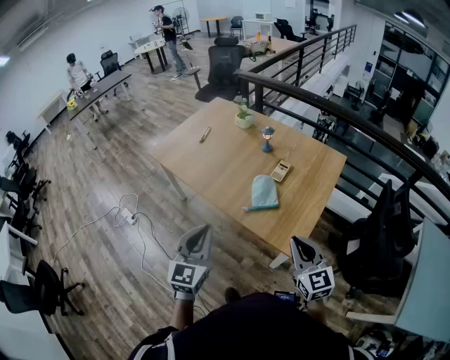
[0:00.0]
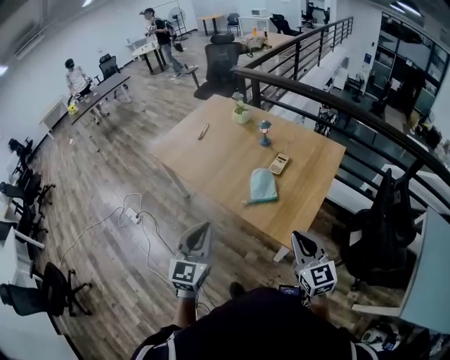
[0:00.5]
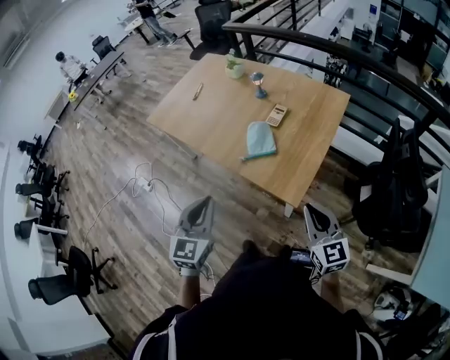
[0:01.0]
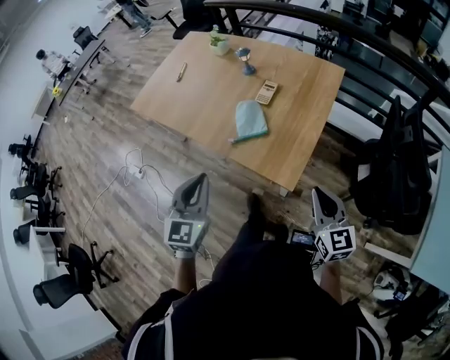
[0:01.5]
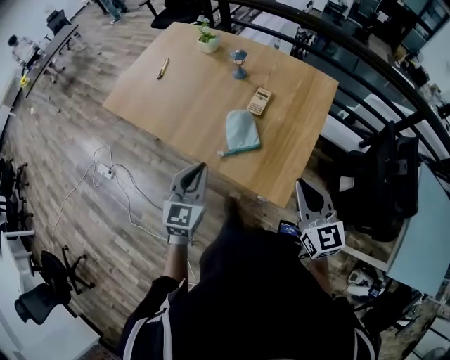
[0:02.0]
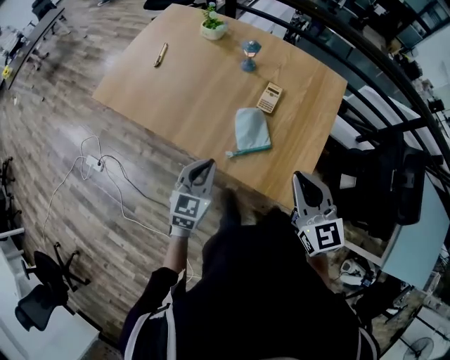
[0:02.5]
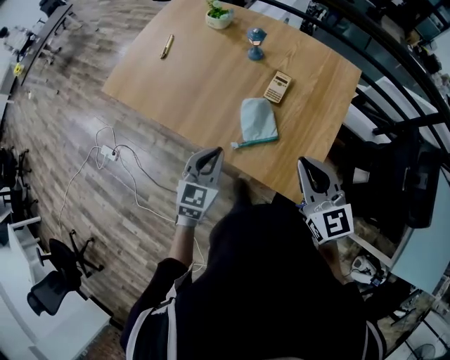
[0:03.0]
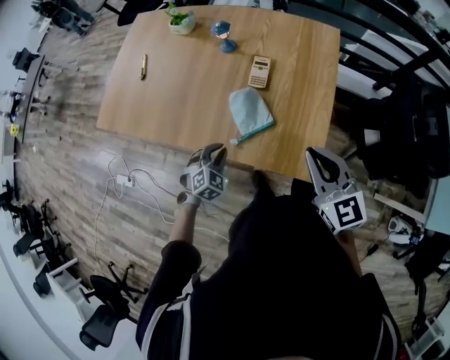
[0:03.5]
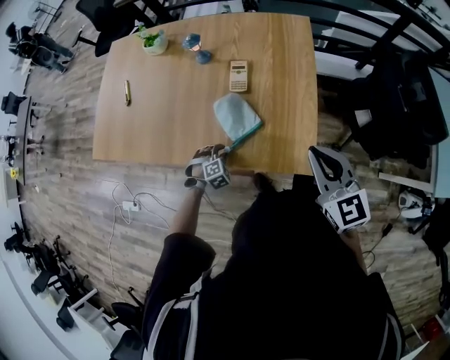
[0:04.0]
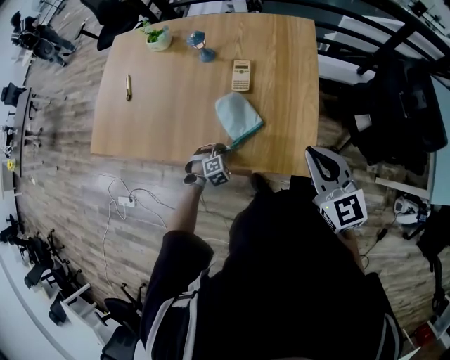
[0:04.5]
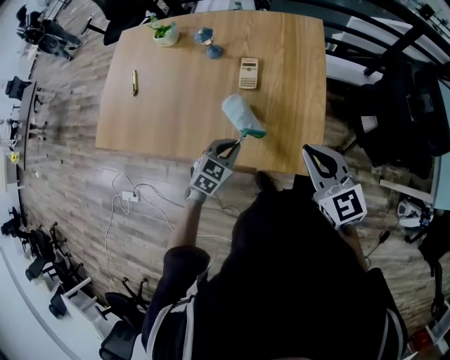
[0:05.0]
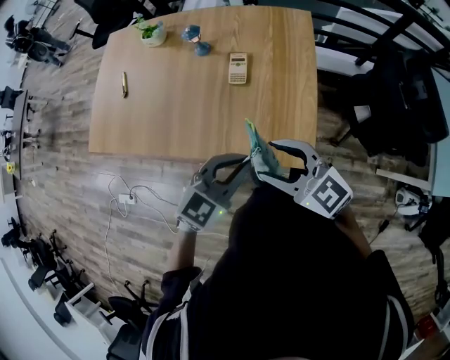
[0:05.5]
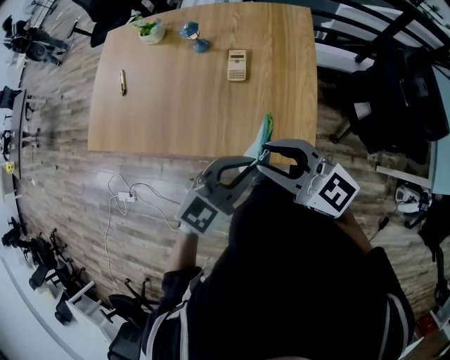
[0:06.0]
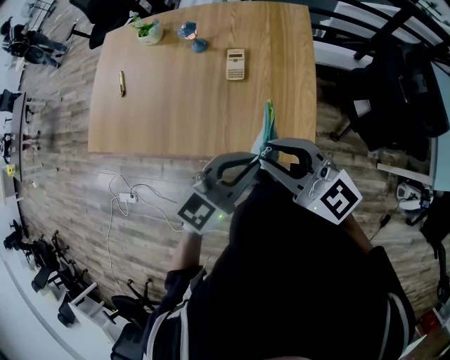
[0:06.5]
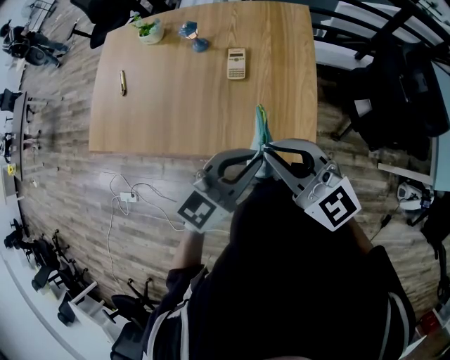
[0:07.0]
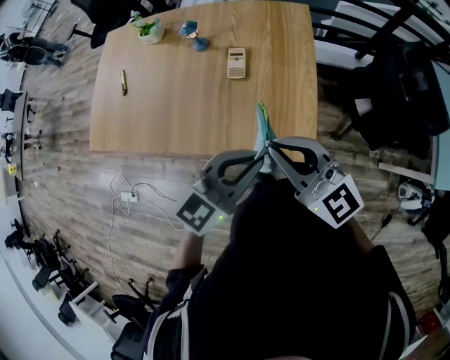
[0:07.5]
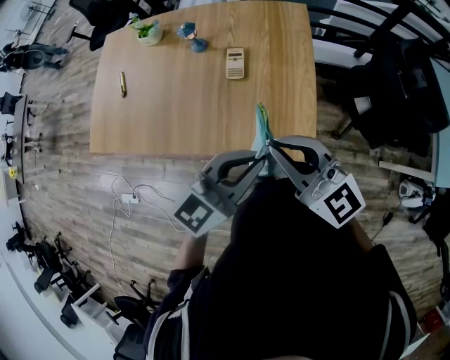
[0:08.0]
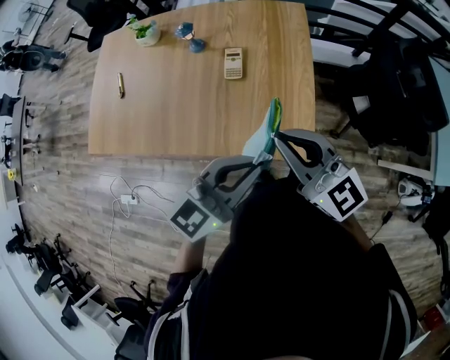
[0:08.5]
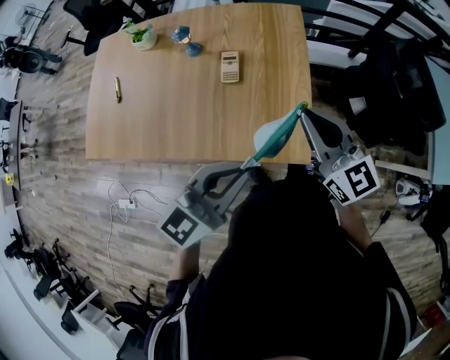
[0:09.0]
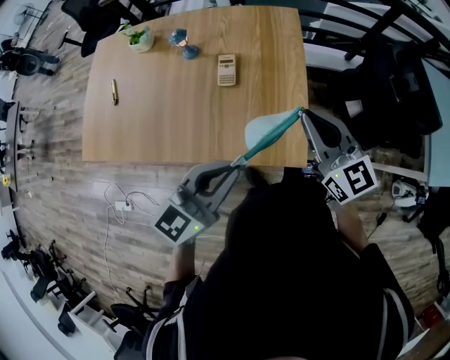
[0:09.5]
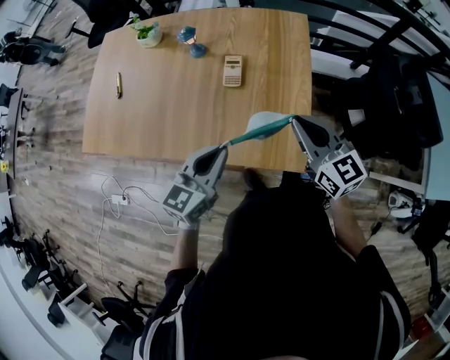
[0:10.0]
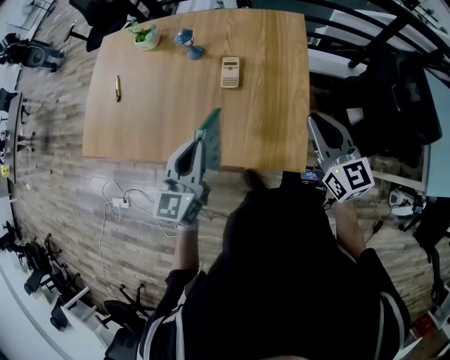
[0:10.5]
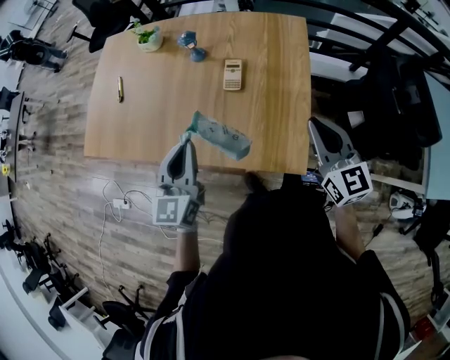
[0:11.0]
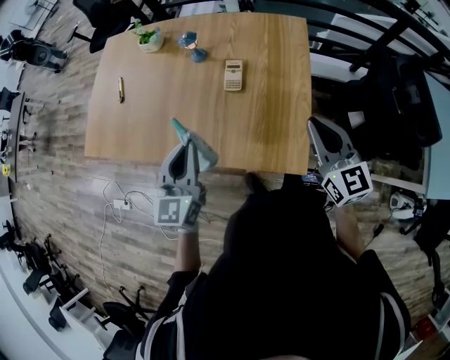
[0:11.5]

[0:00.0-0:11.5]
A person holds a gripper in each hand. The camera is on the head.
0:00.0 to 0:02.0: The left gripper shifts roughly 15 cm forward, downward and to the right; the right gripper heads forward and to the right, covering roughly 10 cm.
0:02.0 to 0:04.0: The left gripper moves downward, some 35 cm, and tilts its fingers some 50 degrees downward, while the right gripper reaches roughly 10 cm to the left, then returns.
0:04.0 to 0:06.0: The left gripper moves upward, approximately 35 cm, and tips its fingers upward by roughly 50 degrees. The right gripper travels to the left by some 10 cm, changes its angle by some 30 degrees, and opens its fingers.
0:06.0 to 0:07.5: The right gripper closes up.
0:07.5 to 0:09.5: The right gripper heads forward and to the right, covering roughly 15 cm, and changes its angle by roughly 20 degrees.
0:09.5 to 0:11.5: The left gripper shifts approximately 15 cm to the left and forward, and changes its angle by approximately 40 degrees.

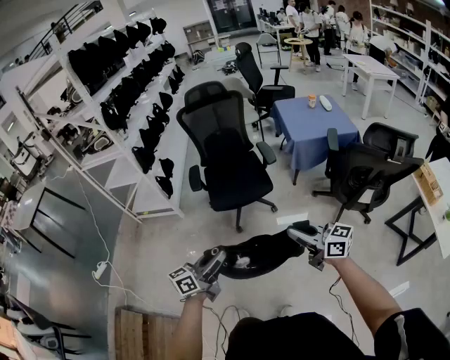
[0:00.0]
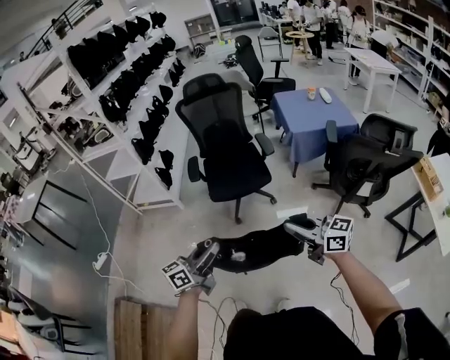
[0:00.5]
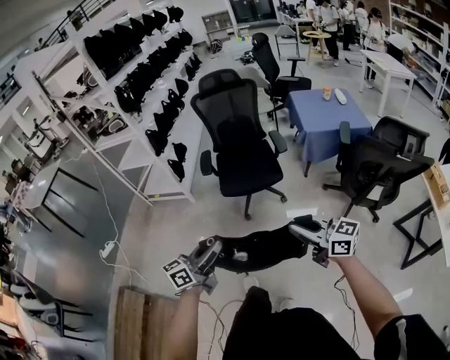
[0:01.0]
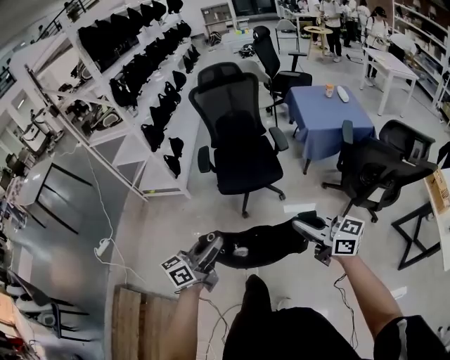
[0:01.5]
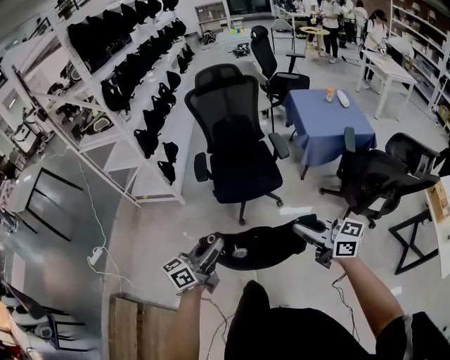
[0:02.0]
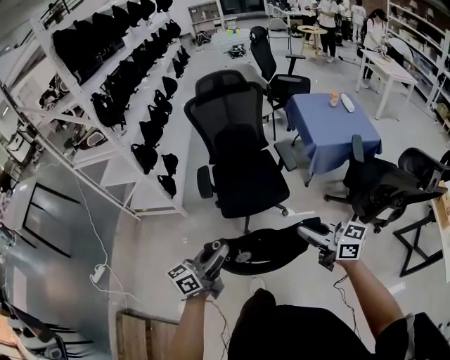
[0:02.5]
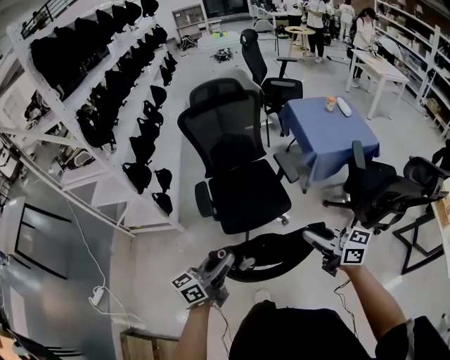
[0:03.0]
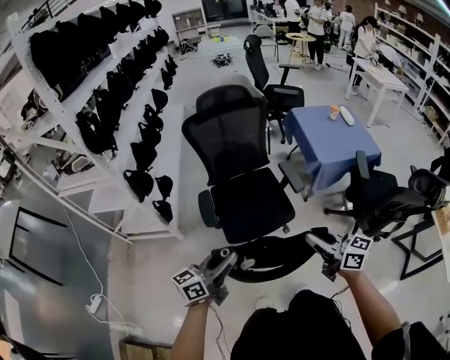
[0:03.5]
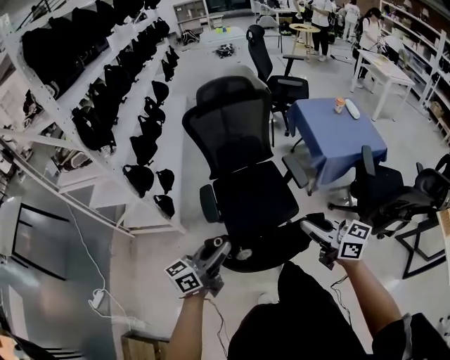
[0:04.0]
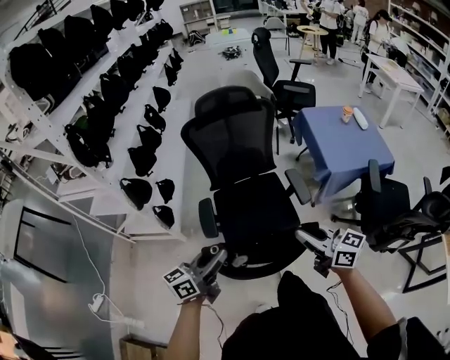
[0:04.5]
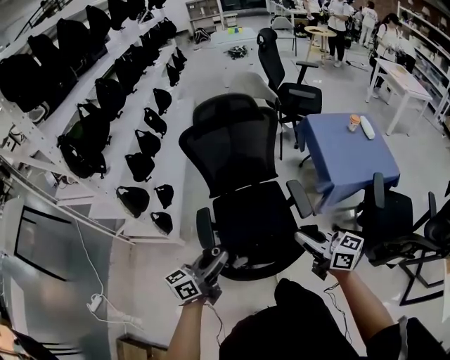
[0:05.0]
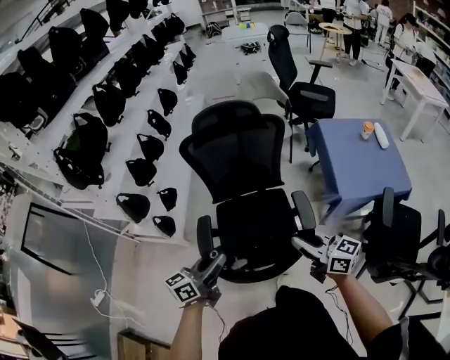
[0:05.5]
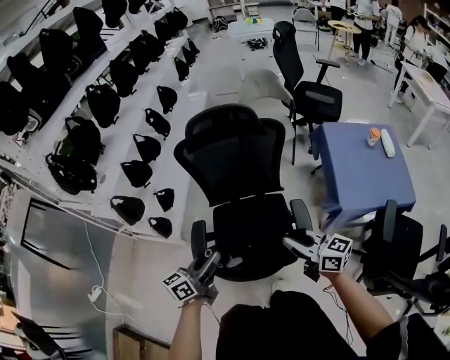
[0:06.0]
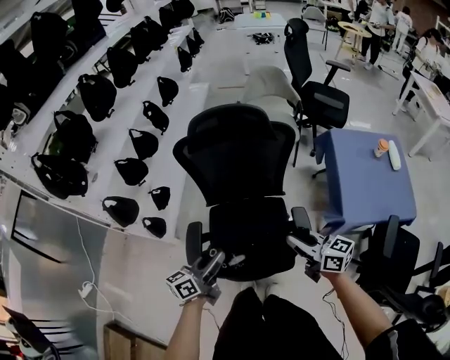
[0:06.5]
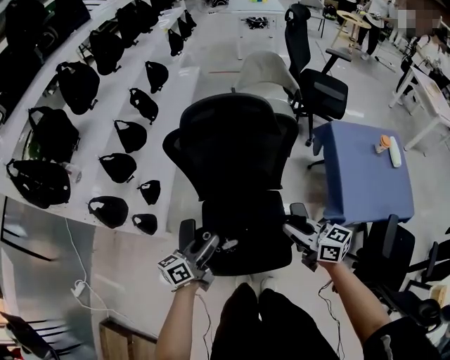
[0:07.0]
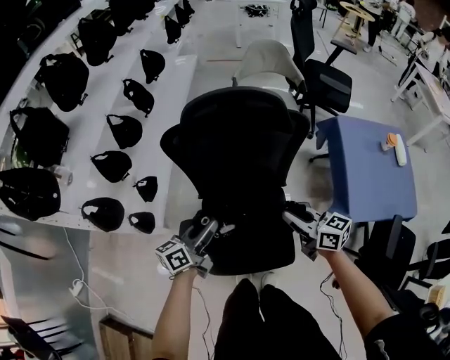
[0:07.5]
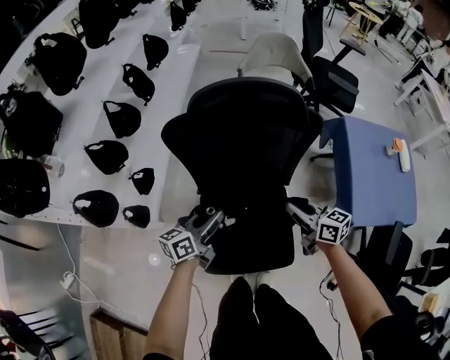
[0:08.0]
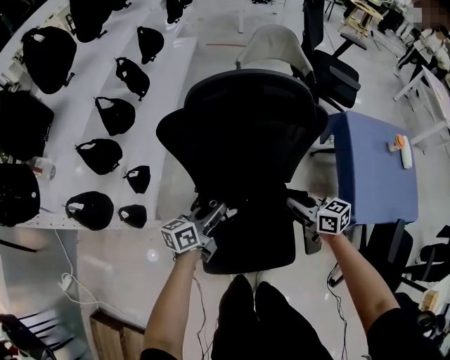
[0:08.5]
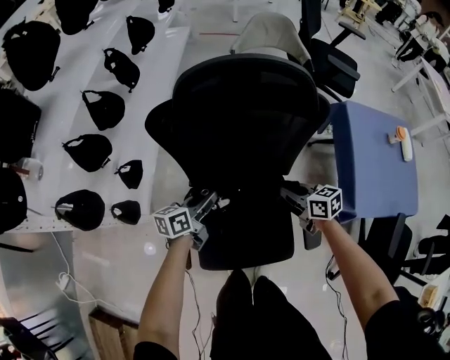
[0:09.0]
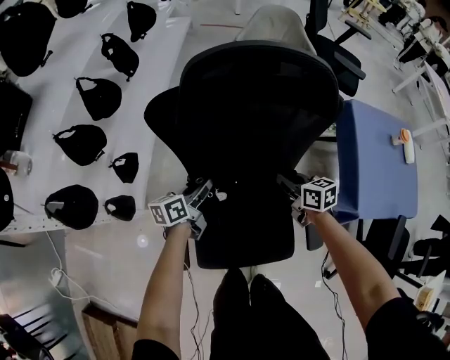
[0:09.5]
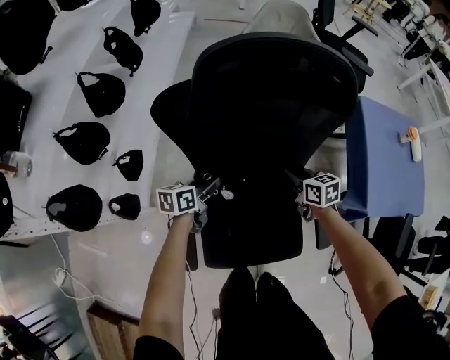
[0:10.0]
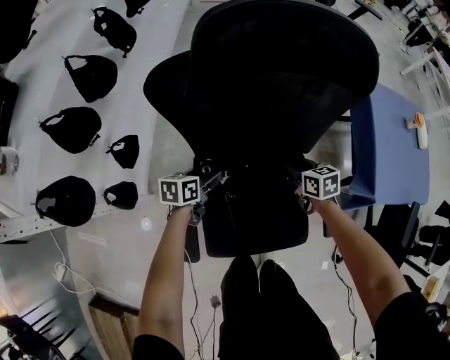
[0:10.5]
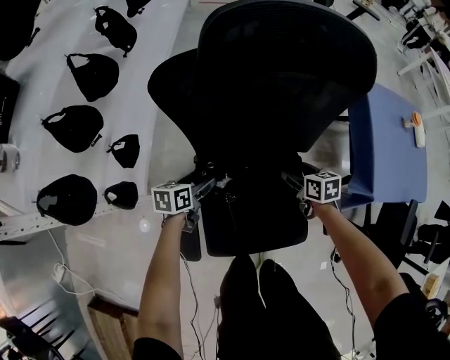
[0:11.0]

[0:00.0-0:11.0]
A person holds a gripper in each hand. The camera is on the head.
0:00.0 to 0:02.0: Both grippers move forward, roughly 10 cm.
0:02.0 to 0:03.5: The two grippers go some 25 cm forward.
0:03.5 to 0:05.5: The two grippers go about 25 cm forward.
0:05.5 to 0:07.5: The two grippers go about 30 cm forward and downward.
0:07.5 to 0:09.0: Both grippers travel together downward and forward, roughly 20 cm.
0:09.0 to 0:11.0: The left gripper goes some 15 cm downward and to the left, and opens up. Meanwhile the right gripper travels downward by approximately 15 cm, swivels some 20 degrees, and opens its fingers.

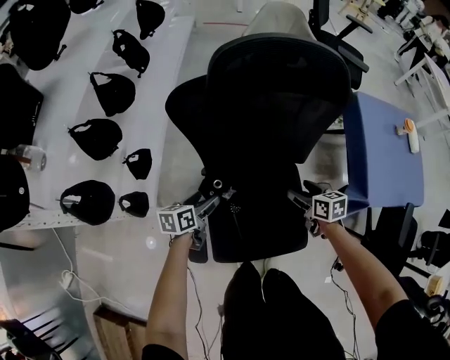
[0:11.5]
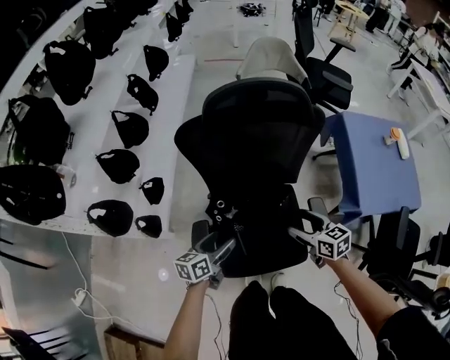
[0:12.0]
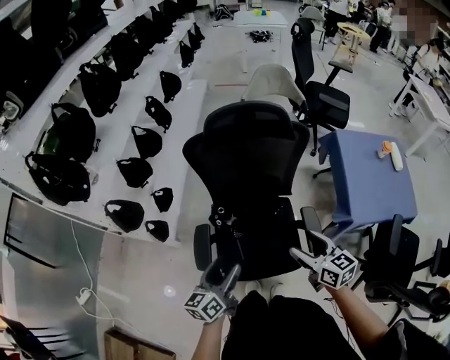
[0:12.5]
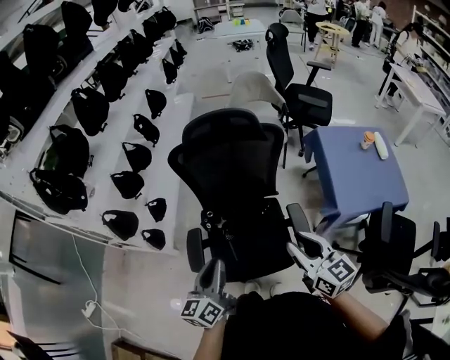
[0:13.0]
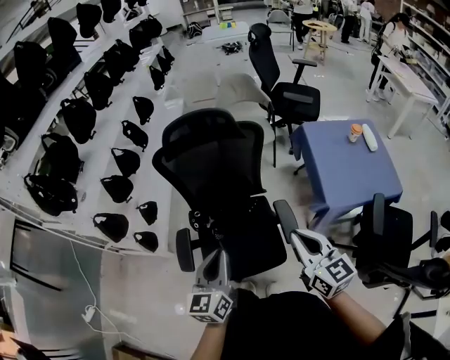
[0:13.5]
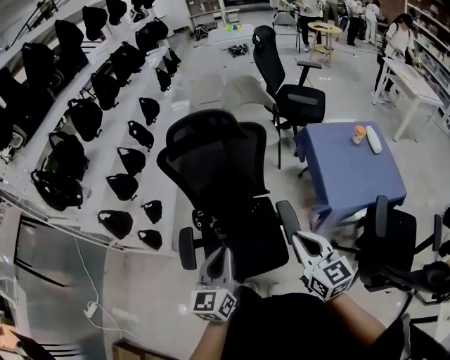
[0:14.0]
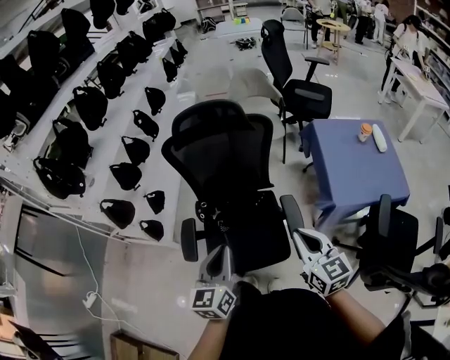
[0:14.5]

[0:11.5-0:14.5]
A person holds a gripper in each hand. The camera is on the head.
0:11.5 to 0:13.0: The two grippers go some 40 cm upward and backward. The right gripper tips its fingers upward by about 30 degrees, and closes its fingers; the left gripper turns by roughly 40 degrees, and closes.
0:13.0 to 0:14.5: Both grippers travel together to the right, roughly 10 cm. The right gripper closes up.

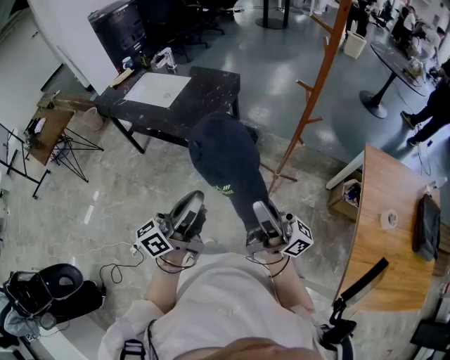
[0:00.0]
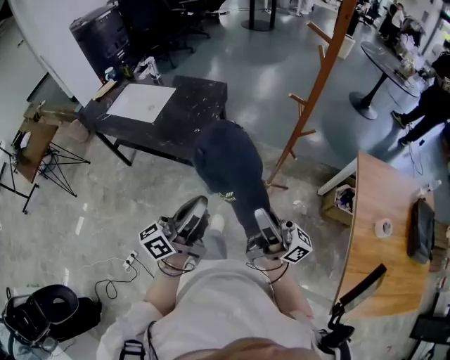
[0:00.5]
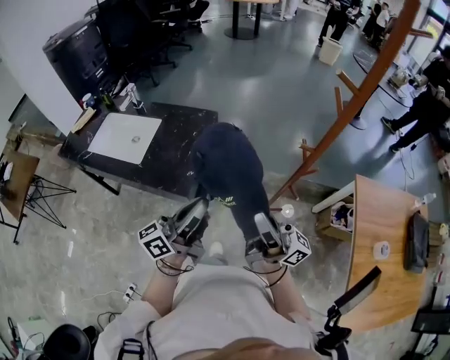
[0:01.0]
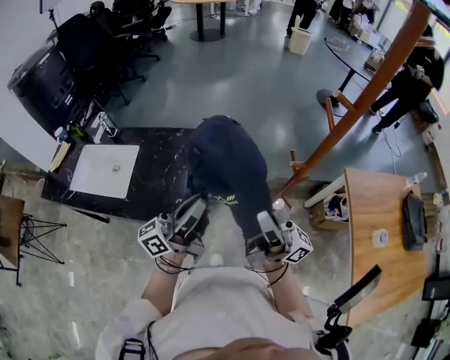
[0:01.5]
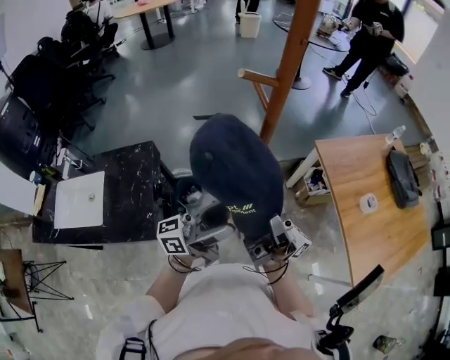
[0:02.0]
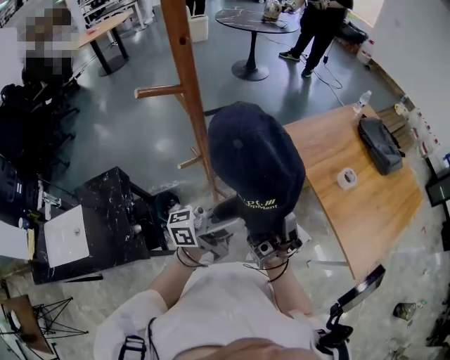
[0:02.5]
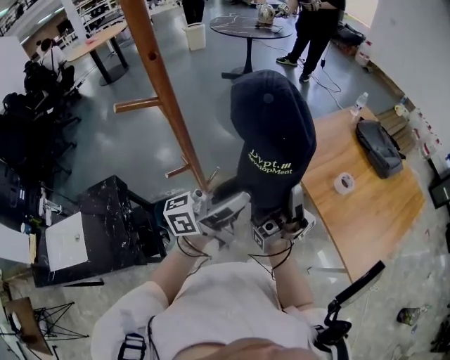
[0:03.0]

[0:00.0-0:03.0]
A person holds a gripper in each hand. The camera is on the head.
0:00.0 to 0:01.5: Both grippers move forward, roughly 40 cm. The left gripper changes its angle by approximately 30 degrees.
0:01.5 to 0:03.0: The right gripper moves about 40 cm, and rotates roughly 40 degrees. The left gripper ends up roughly 40 cm from where it was, turns by approximately 40 degrees, and opens.
